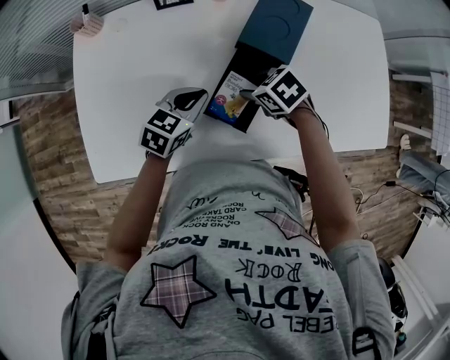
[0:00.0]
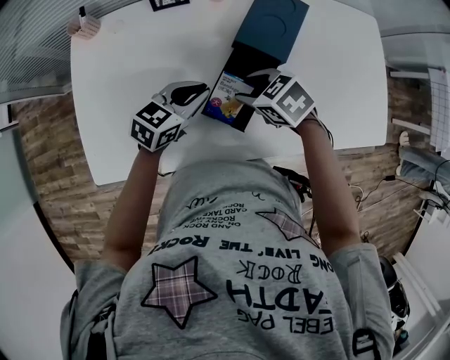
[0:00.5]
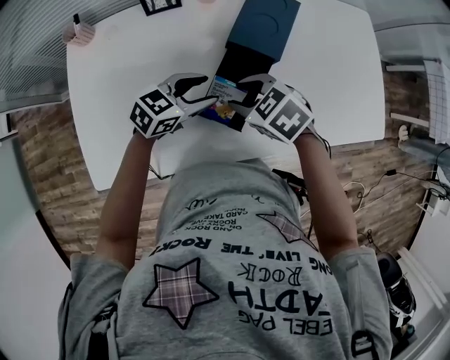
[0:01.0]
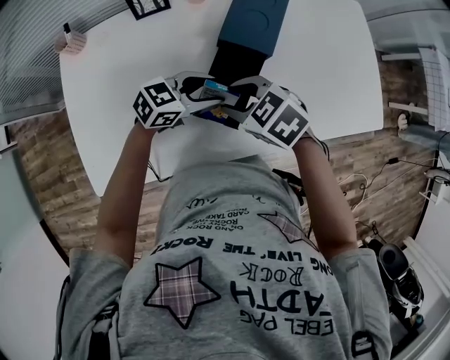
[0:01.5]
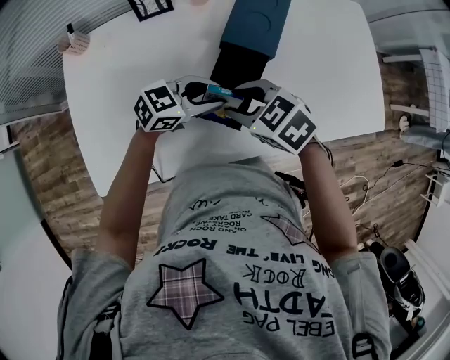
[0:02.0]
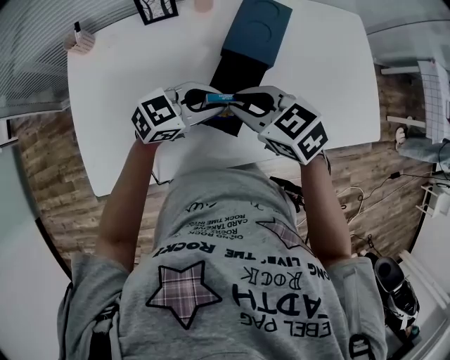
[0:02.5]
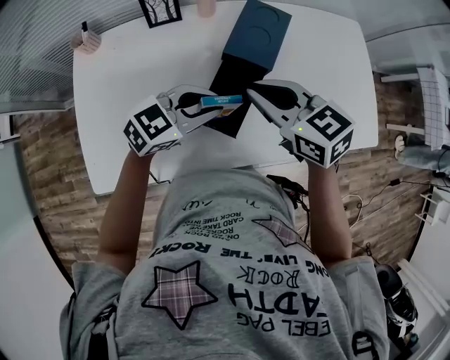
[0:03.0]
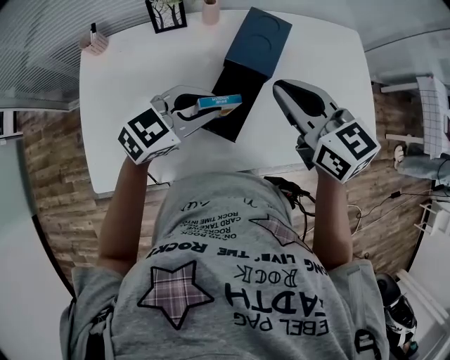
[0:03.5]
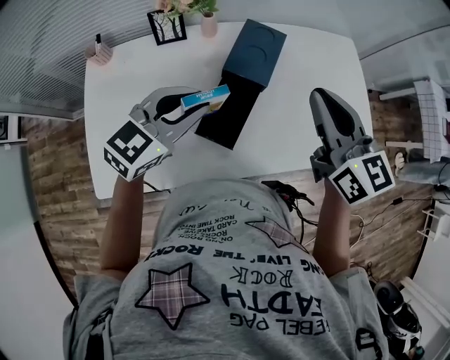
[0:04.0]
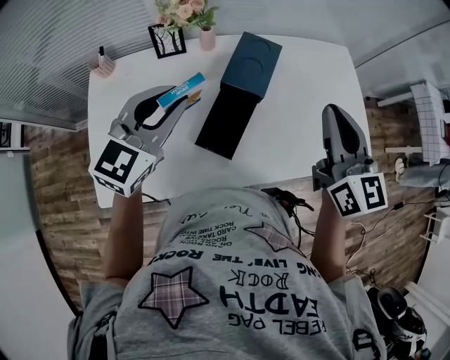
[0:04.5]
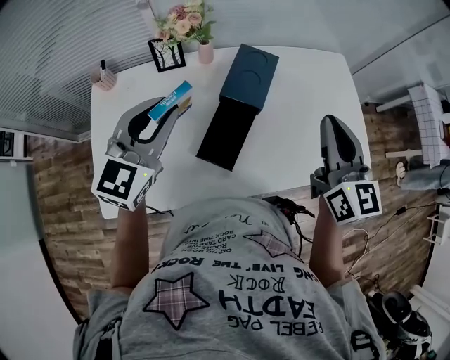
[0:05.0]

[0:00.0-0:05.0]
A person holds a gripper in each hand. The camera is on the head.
0:00.0 to 0:02.5: The left gripper shifts by some 10 cm, turns by about 40 degrees, and opens and closes again. Meanwhile the right gripper is displaced upward by roughly 15 cm, rotates about 20 degrees, and closes.
0:02.5 to 0:05.0: Both grippers travel together upward, roughly 20 cm. The left gripper changes its angle by some 50 degrees, while the right gripper angles its fingers upward, by approximately 40 degrees.

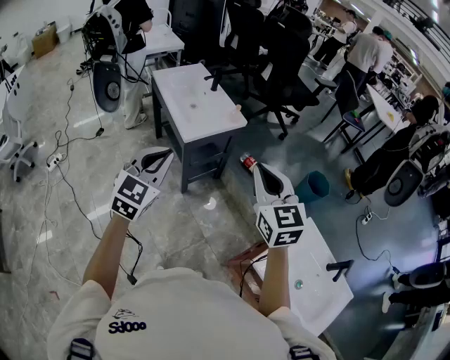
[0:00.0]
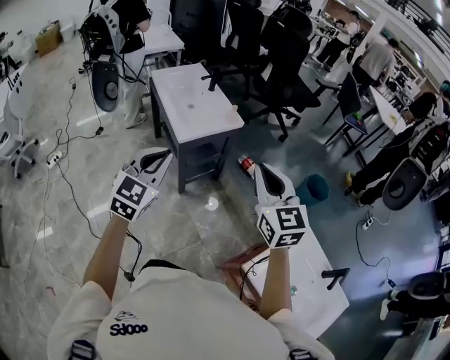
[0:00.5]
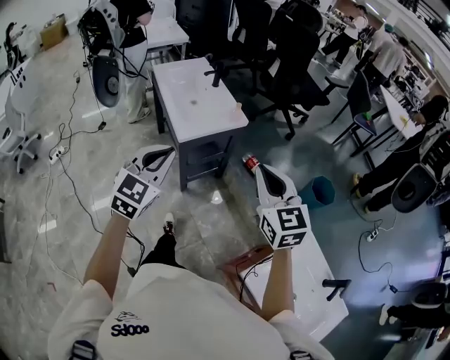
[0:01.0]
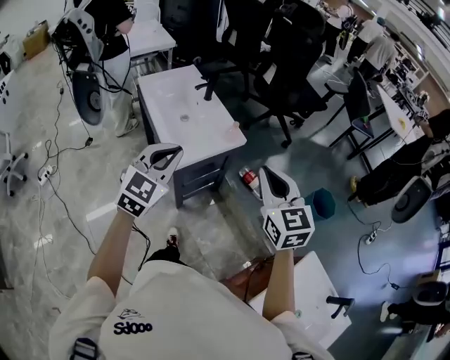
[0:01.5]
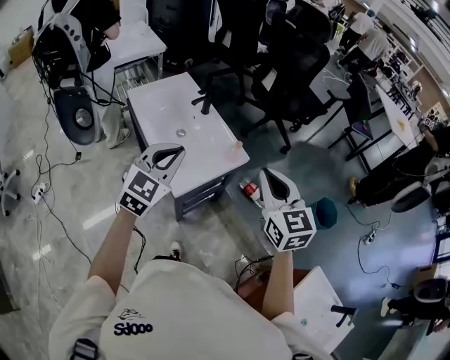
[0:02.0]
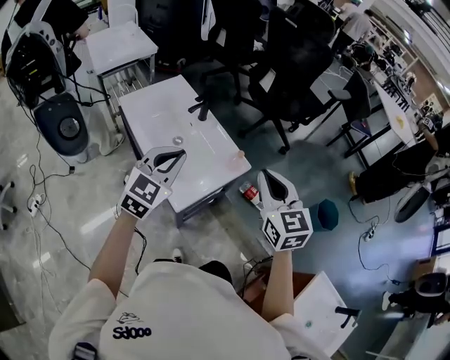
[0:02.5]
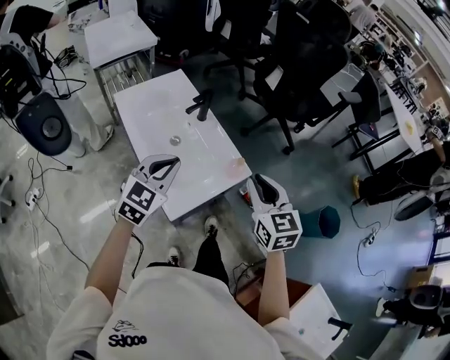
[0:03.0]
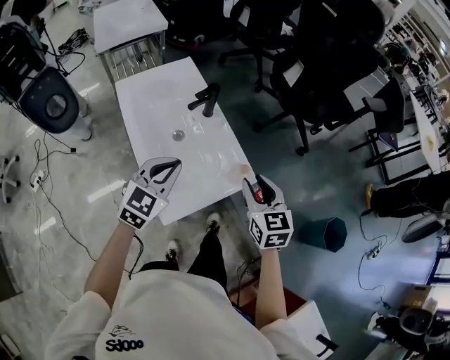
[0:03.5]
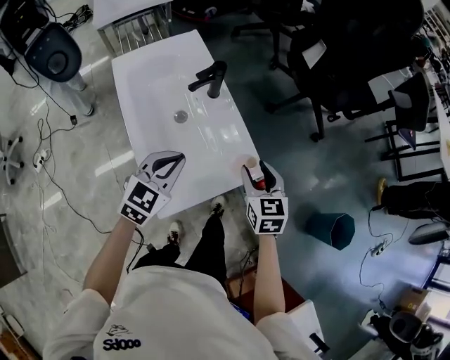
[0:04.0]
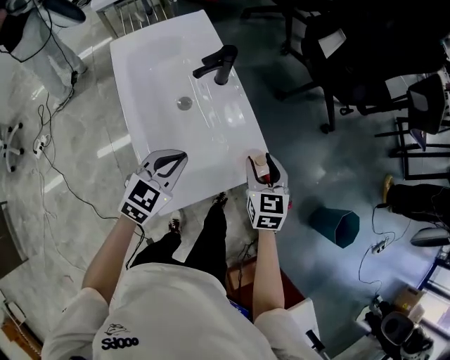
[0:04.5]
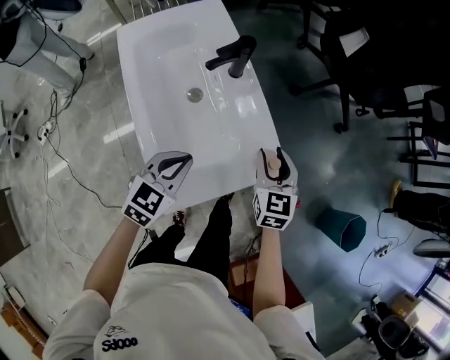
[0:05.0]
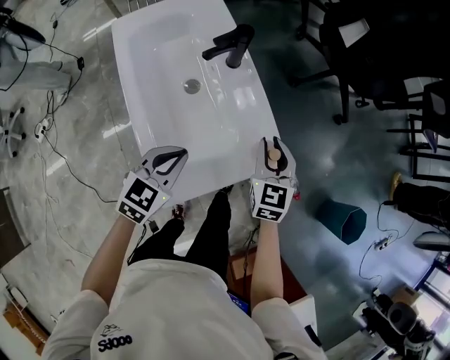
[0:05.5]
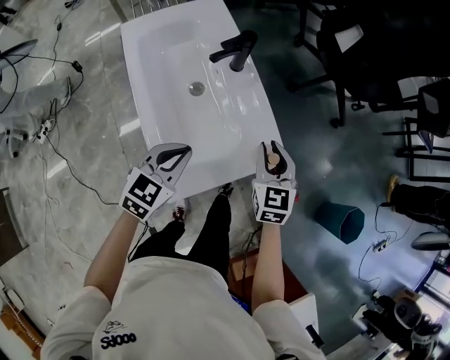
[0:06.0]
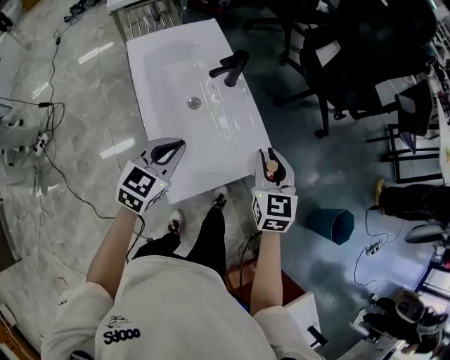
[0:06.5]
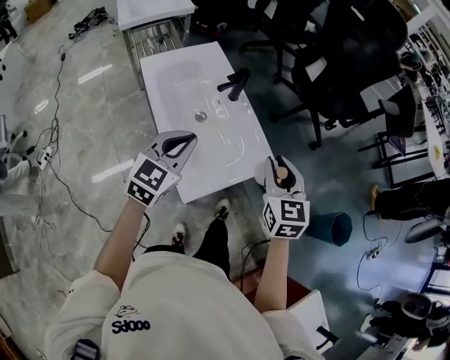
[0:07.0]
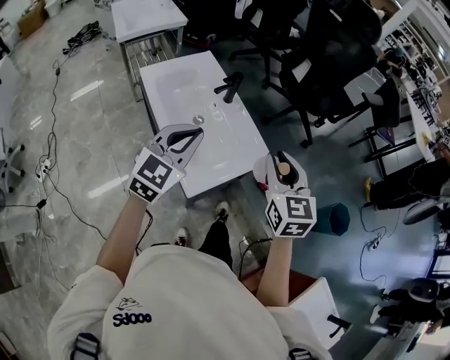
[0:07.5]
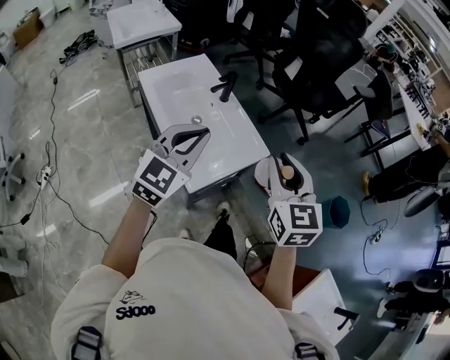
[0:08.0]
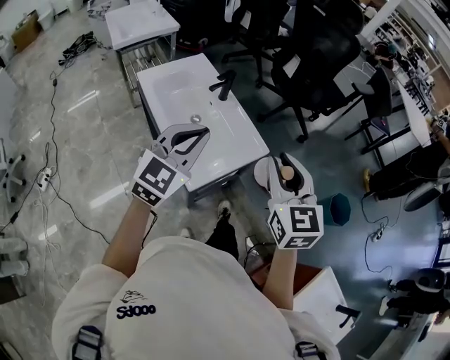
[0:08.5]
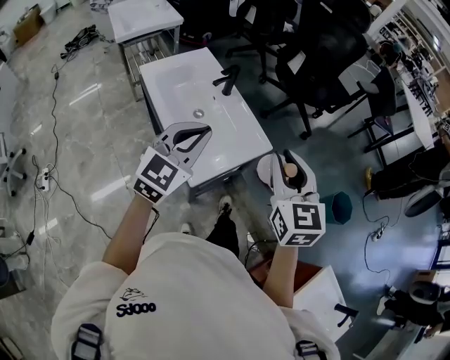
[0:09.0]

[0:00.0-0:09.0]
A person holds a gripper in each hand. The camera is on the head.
0:00.0 to 0:02.0: Both grippers travel together forward, roughly 30 cm.
0:02.0 to 0:04.5: The grippers both shift downward and forward by roughly 35 cm. The left gripper swivels roughly 20 degrees; the right gripper opens.
0:04.5 to 0:07.0: The right gripper heads upward and backward, covering approximately 20 cm, and closes its fingers. Meanwhile the left gripper is displaced upward by about 15 cm.
0:07.0 to 0:09.0: The left gripper shifts roughly 10 cm upward and backward, while the right gripper goes approximately 15 cm backward and upward.

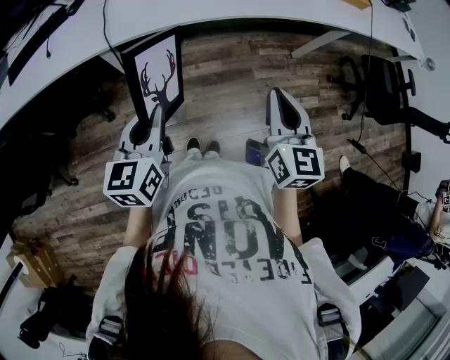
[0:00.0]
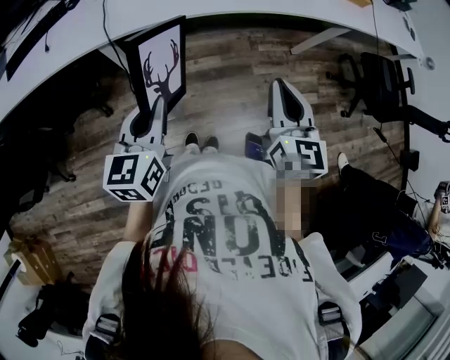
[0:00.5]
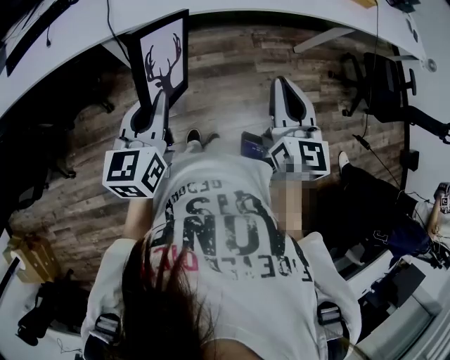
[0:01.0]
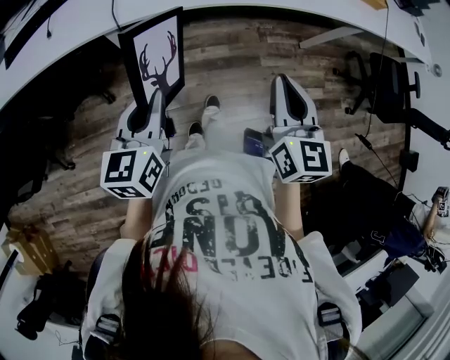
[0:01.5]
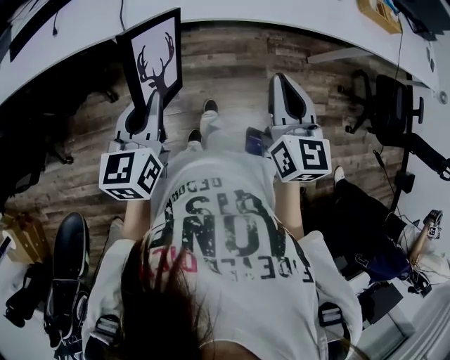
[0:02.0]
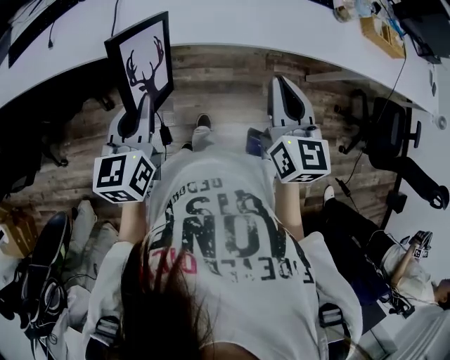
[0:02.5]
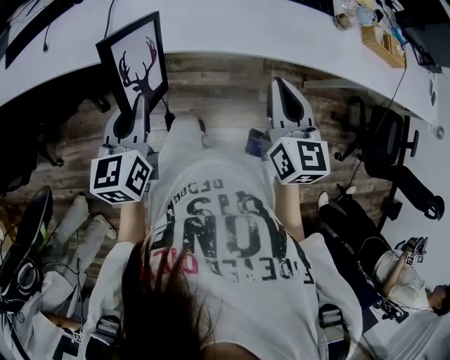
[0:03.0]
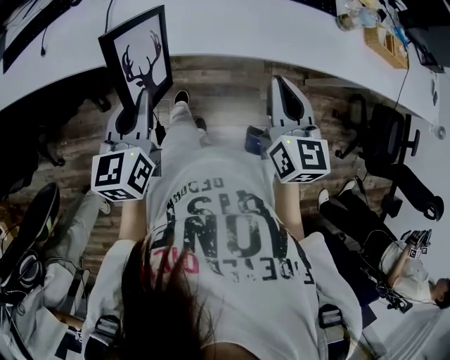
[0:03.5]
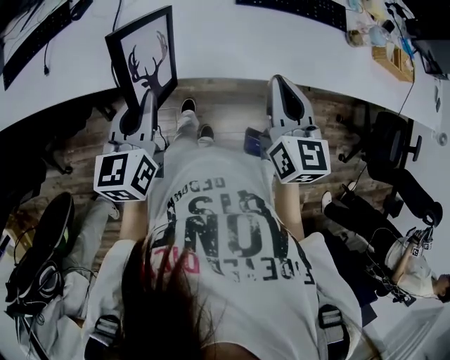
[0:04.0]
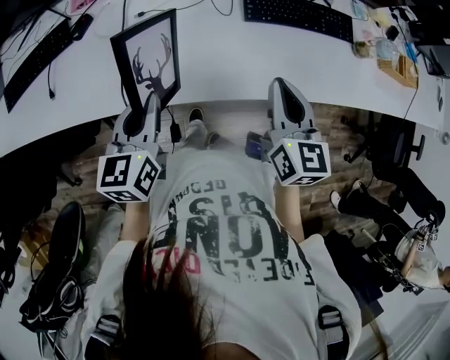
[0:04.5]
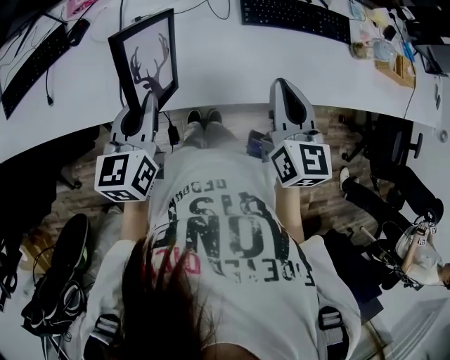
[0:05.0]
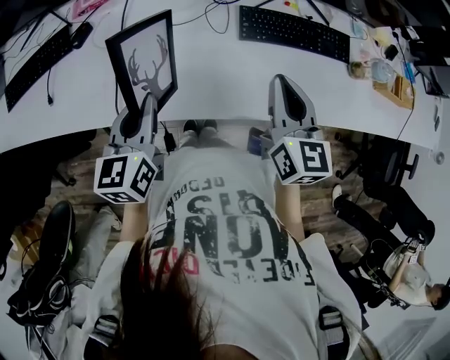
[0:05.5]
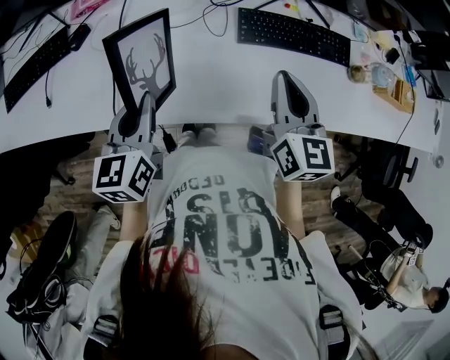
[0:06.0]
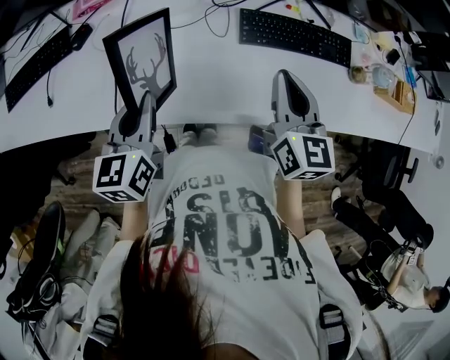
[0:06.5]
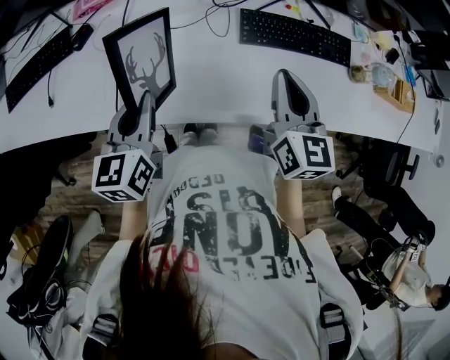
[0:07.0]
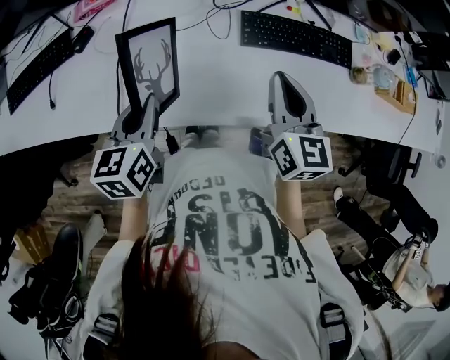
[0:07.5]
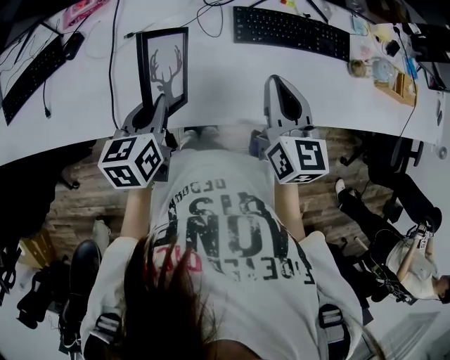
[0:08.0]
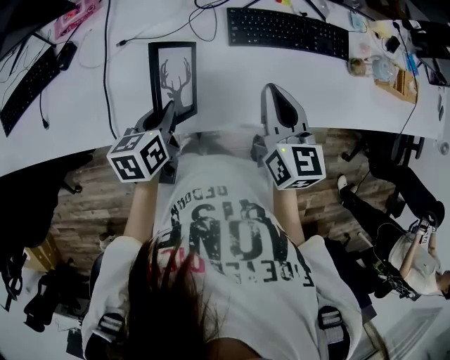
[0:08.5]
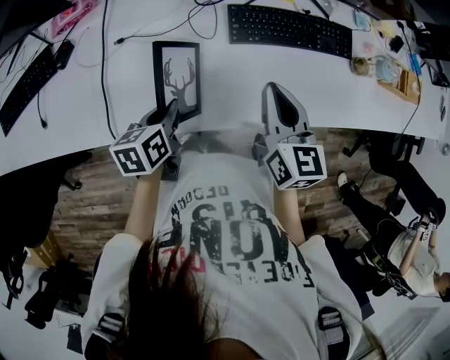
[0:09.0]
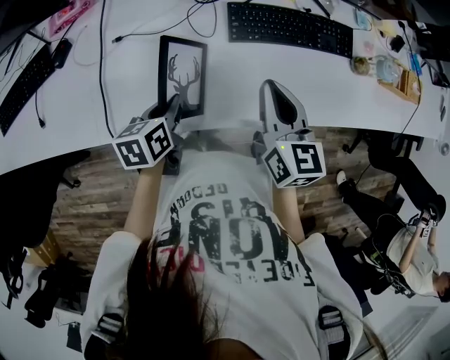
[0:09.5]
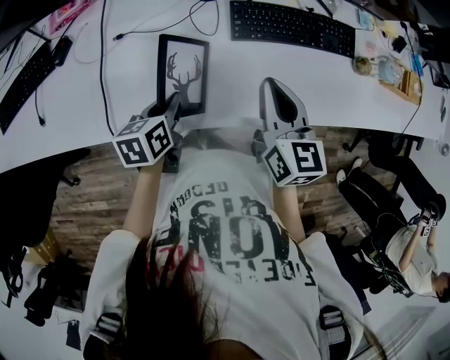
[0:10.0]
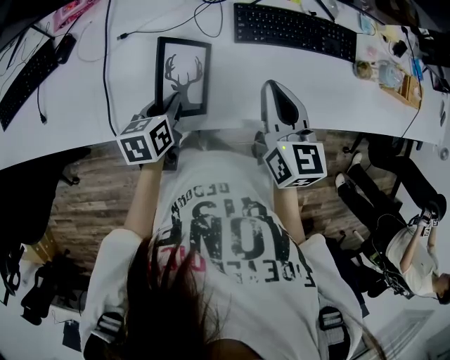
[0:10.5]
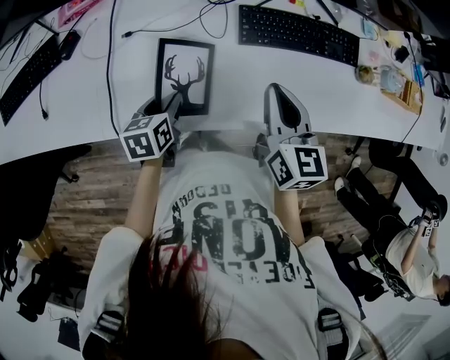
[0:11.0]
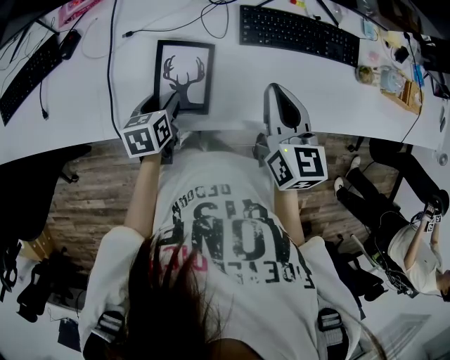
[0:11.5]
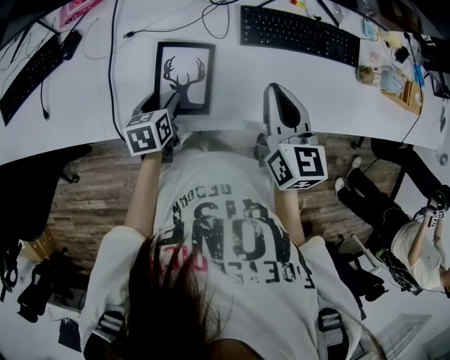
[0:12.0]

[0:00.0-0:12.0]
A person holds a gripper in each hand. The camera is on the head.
0:00.0 to 0:02.0: Both grippers travel together forward and to the left, roughly 10 cm.
0:02.0 to 0:04.0: There are only small adjustments of the grippers.
0:04.0 to 0:06.0: Both grippers move forward, about 15 cm.
0:06.0 to 0:08.0: The left gripper shifts some 5 cm downward.
0:08.0 to 0:10.0: The left gripper moves downward, approximately 10 cm.
0:10.0 to 0:12.0: The left gripper travels downward by roughly 5 cm, and opens up.

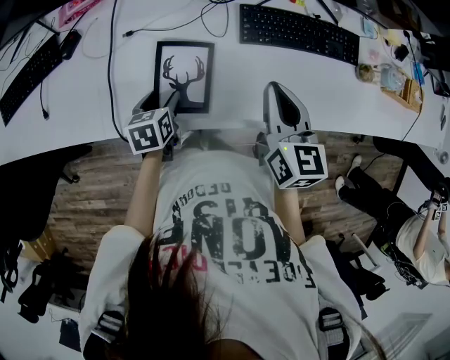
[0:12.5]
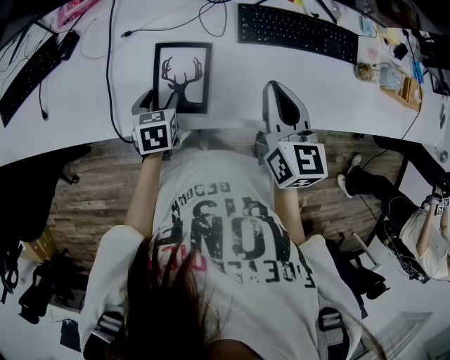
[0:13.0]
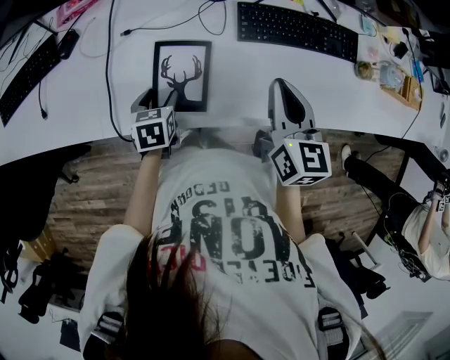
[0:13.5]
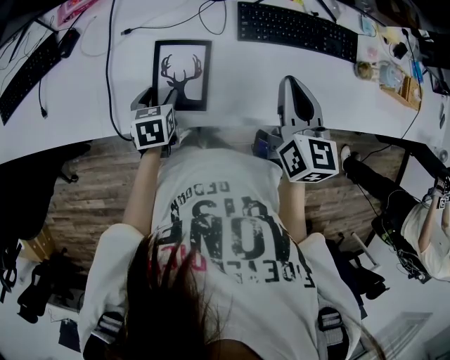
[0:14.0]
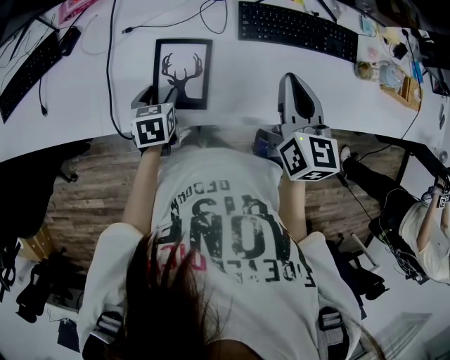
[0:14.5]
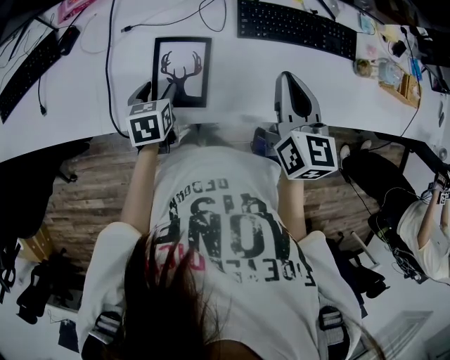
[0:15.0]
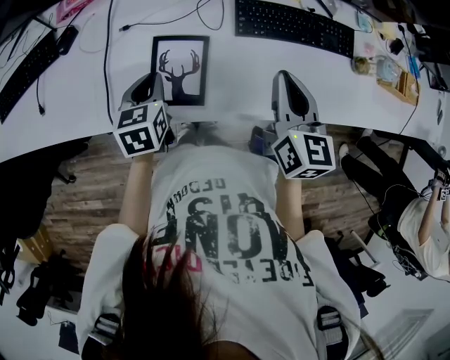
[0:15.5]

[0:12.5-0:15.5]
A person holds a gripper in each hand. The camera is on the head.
0:12.5 to 0:14.0: There are only small adjustments of the grippers.
0:14.0 to 0:15.5: The left gripper goes roughly 10 cm upward, and closes up.
